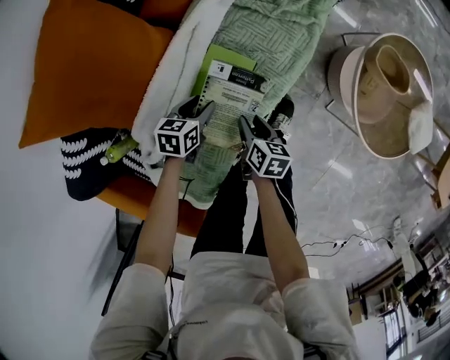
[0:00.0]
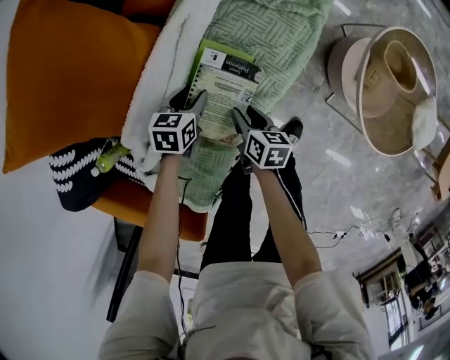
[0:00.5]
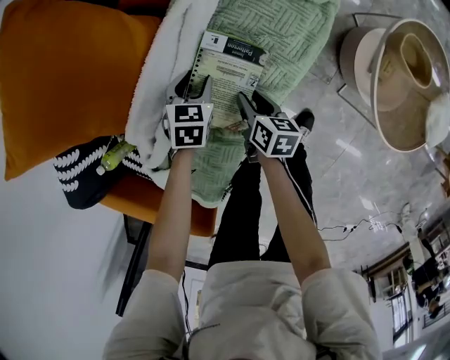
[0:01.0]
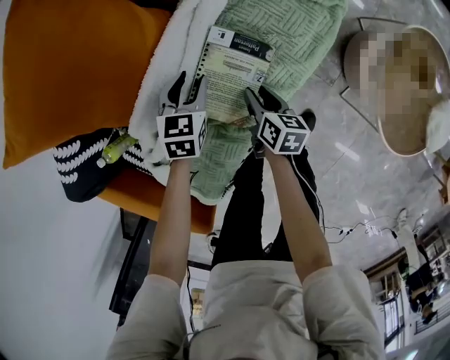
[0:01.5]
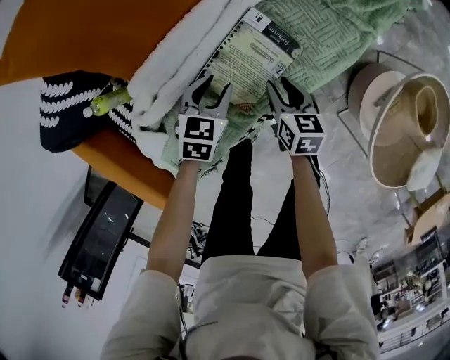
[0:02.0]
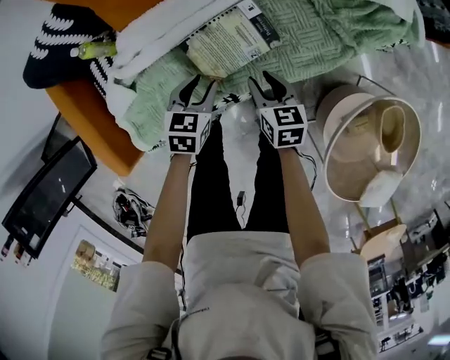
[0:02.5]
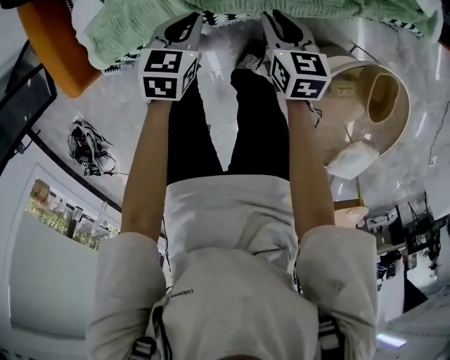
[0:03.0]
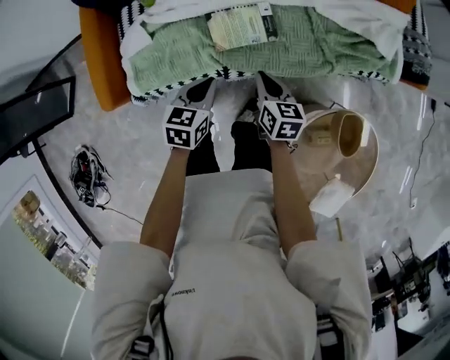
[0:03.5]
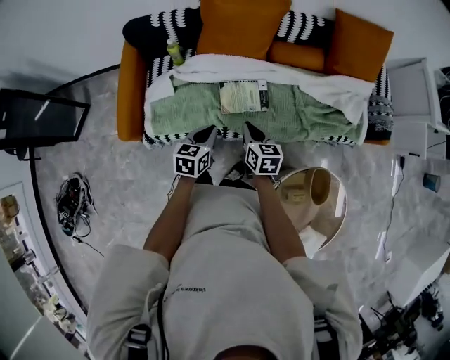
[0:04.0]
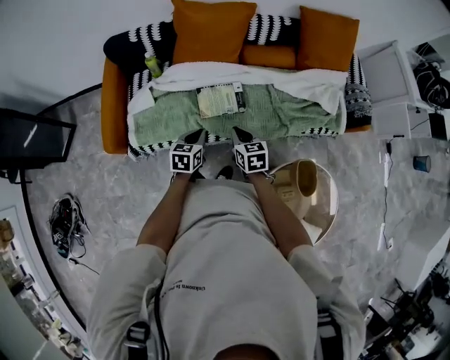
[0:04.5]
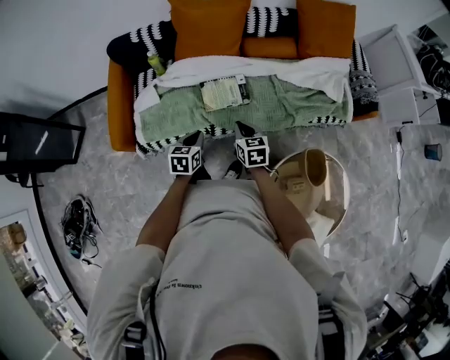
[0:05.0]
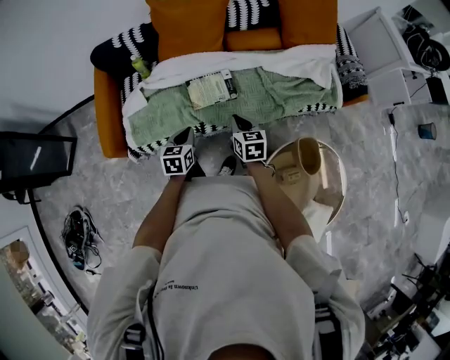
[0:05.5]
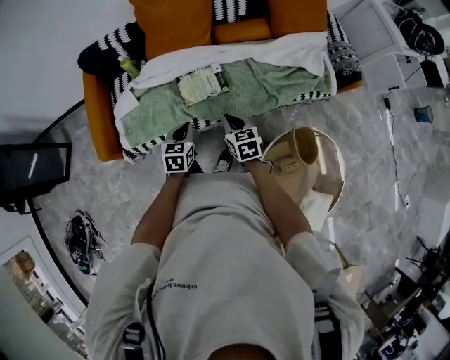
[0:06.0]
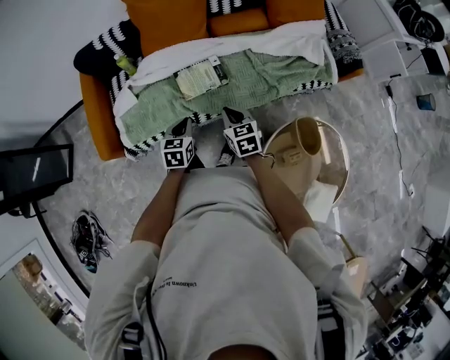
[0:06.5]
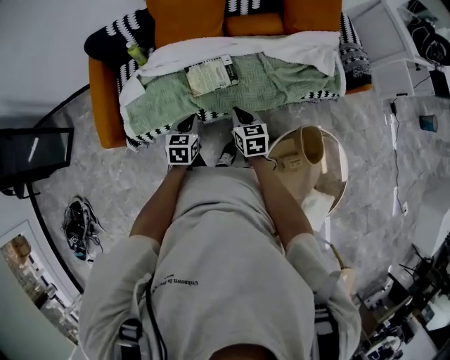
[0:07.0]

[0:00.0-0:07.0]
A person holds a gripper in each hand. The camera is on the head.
0:00.0 to 0:02.0: The left gripper changes its angle by about 20 degrees; the right gripper travels forward by approximately 5 cm, and changes its angle by about 40 degrees.
0:02.0 to 0:03.5: The grippers both shift upward by roughly 20 cm. The left gripper rotates roughly 40 degrees, and closes its fingers, while the right gripper rotates roughly 30 degrees, and closes its fingers.
0:03.5 to 0:05.0: The right gripper travels upward and backward by about 15 cm; the left gripper travels backward and upward by some 10 cm.
0:05.0 to 0:07.0: The grippers move only a little.

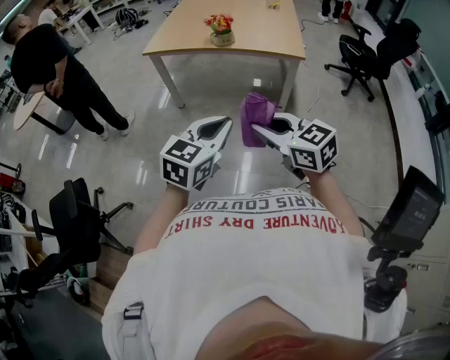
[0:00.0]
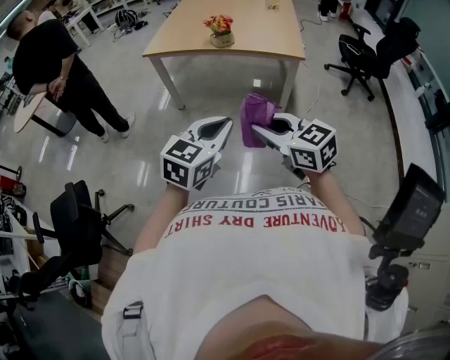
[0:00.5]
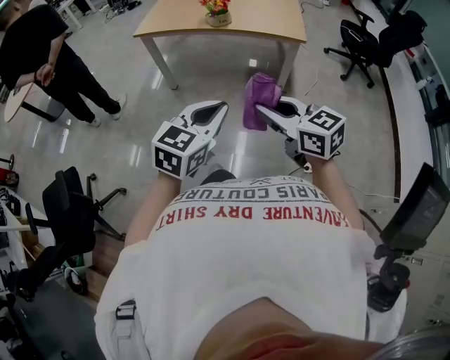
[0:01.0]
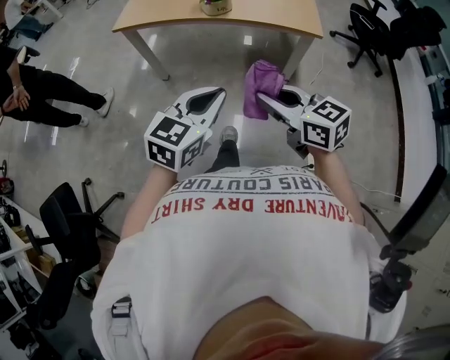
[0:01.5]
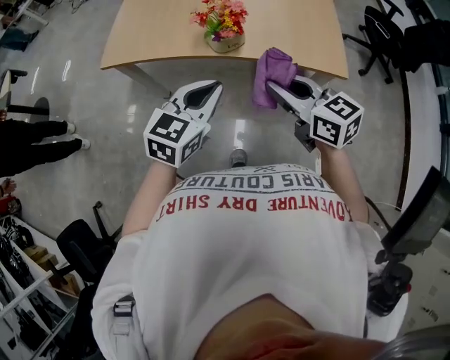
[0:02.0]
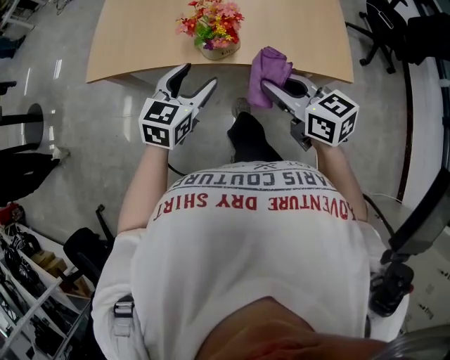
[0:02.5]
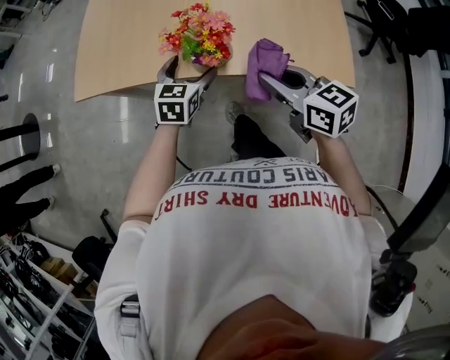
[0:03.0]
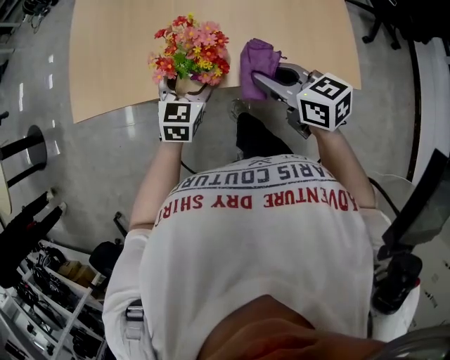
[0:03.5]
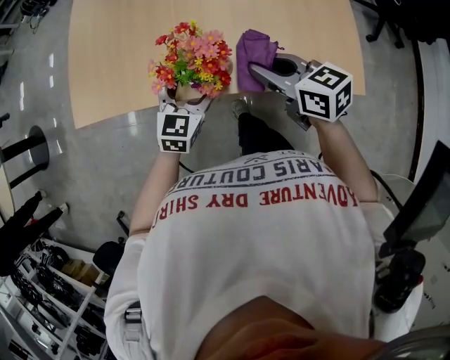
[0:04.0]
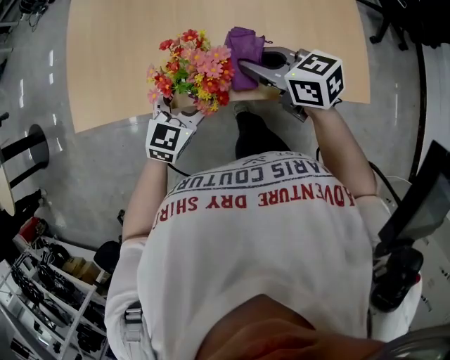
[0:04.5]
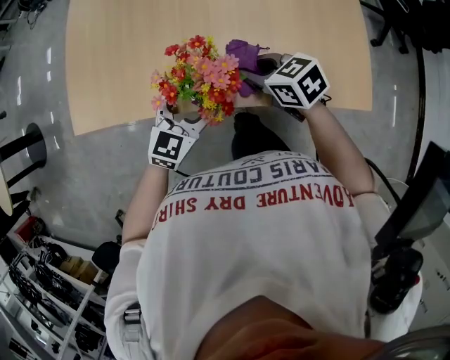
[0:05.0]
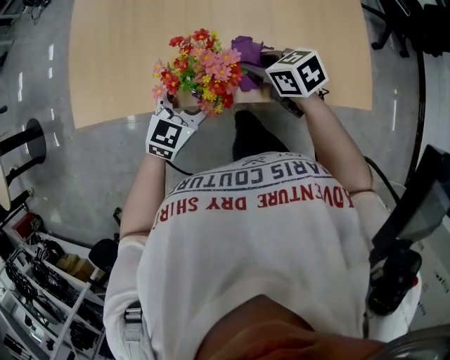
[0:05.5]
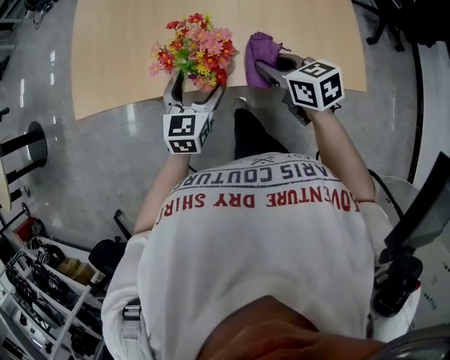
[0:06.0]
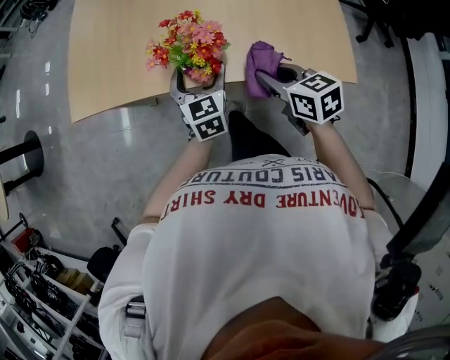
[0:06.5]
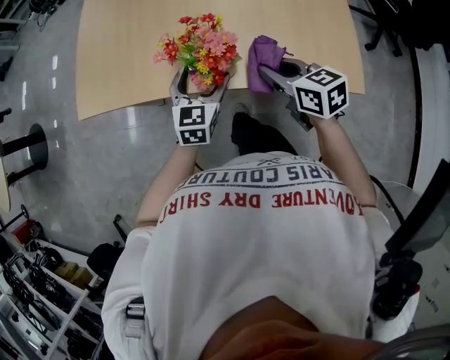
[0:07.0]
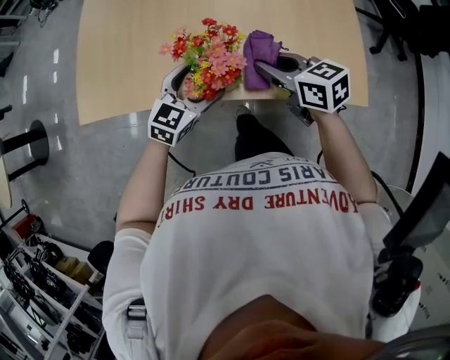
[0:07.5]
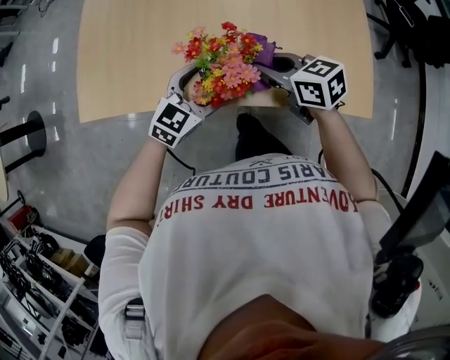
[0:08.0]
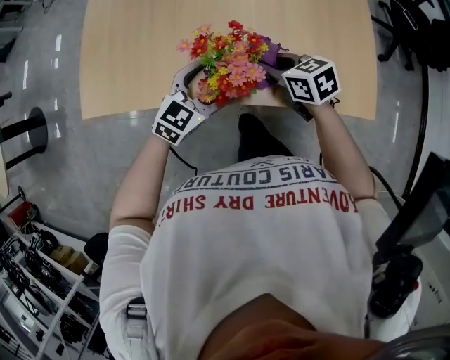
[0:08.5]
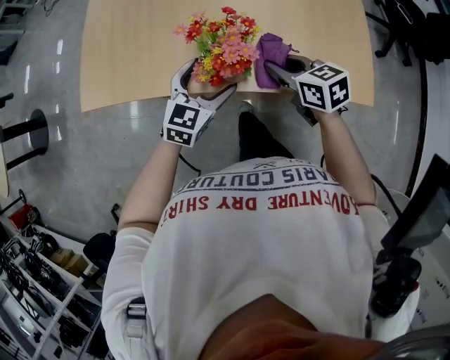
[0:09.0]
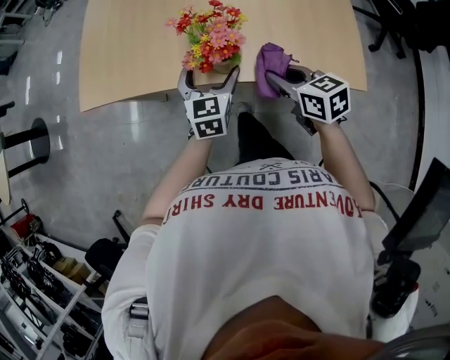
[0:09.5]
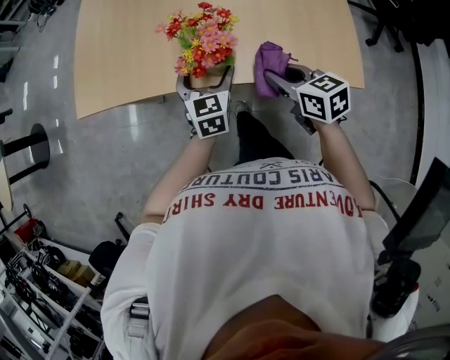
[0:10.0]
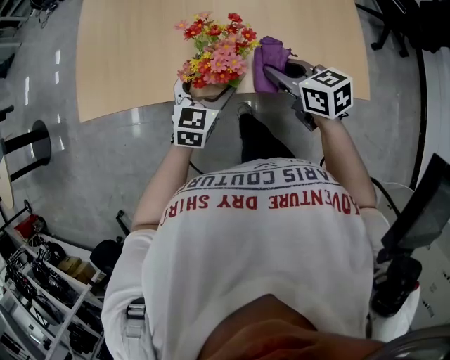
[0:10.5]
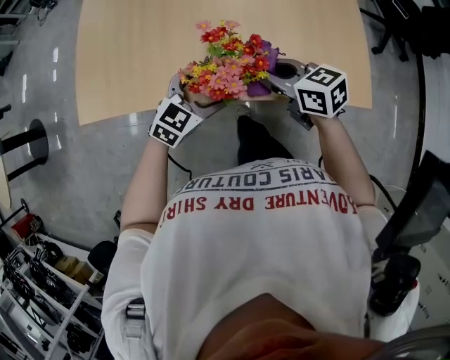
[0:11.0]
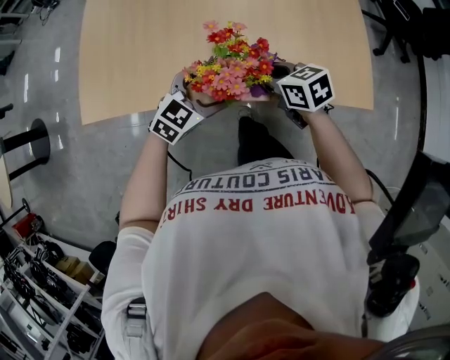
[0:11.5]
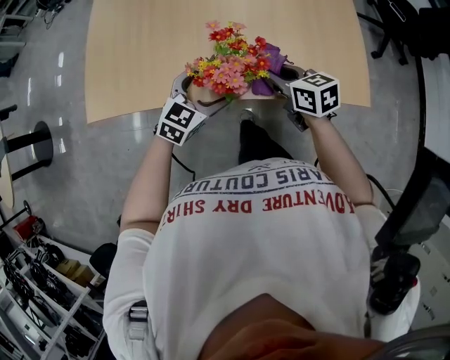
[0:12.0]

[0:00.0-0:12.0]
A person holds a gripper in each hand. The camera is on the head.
0:00.0 to 0:02.0: Both grippers travel together forward, about 30 cm.
0:02.0 to 0:04.0: The grippers both shift forward and downward by roughly 30 cm. The left gripper opens its fingers.
0:04.0 to 0:06.0: The right gripper shifts about 5 cm downward.
0:06.0 to 0:08.0: The left gripper changes place by about 5 cm, and turns by some 30 degrees. Meanwhile the right gripper moves forward, about 5 cm.
0:08.0 to 0:10.0: The left gripper turns by about 40 degrees. The right gripper is displaced backward by approximately 10 cm.
0:10.0 to 0:12.0: The left gripper changes its angle by roughly 40 degrees, while the right gripper heads forward, covering some 5 cm.

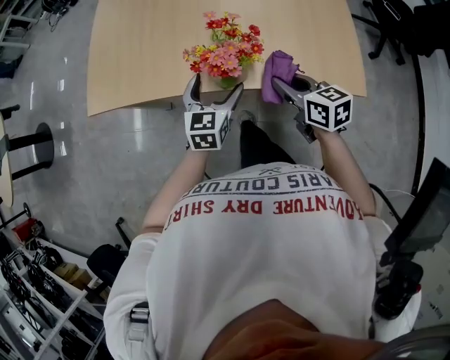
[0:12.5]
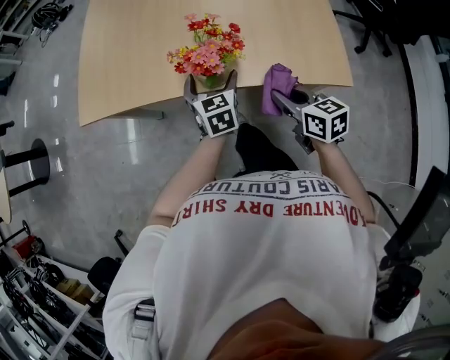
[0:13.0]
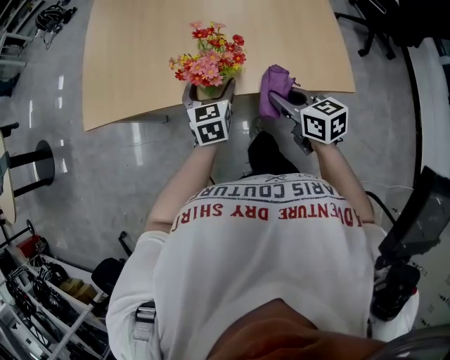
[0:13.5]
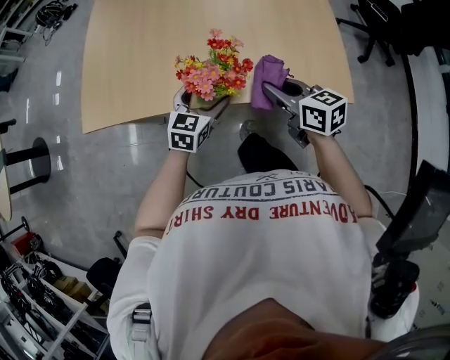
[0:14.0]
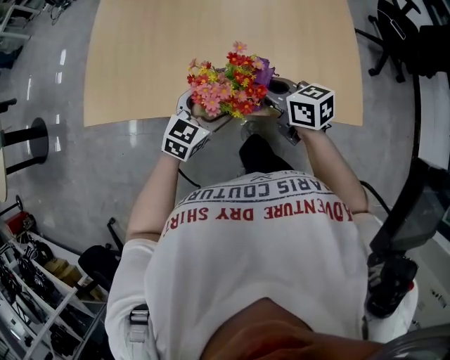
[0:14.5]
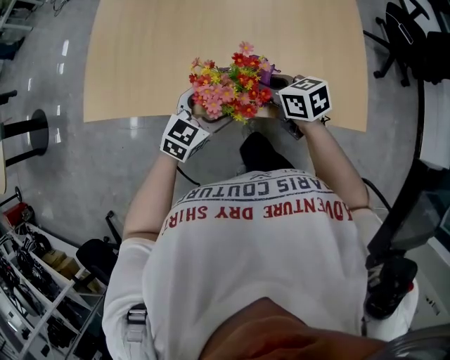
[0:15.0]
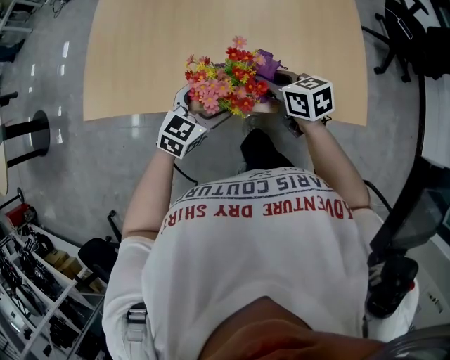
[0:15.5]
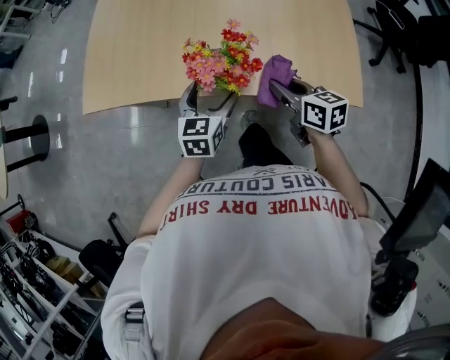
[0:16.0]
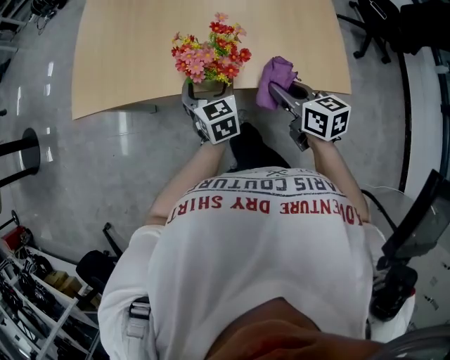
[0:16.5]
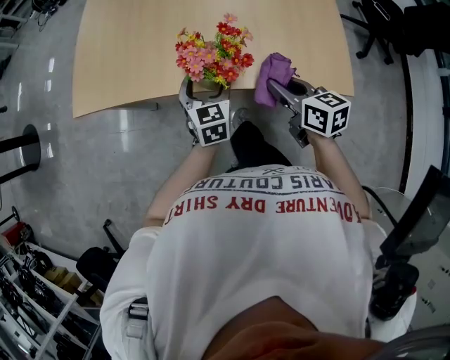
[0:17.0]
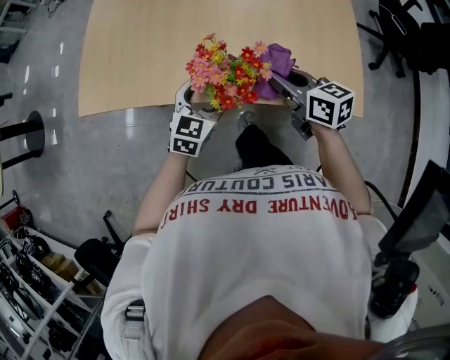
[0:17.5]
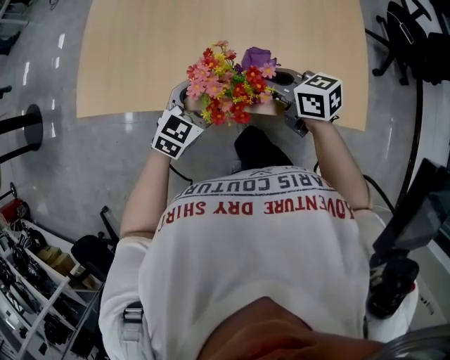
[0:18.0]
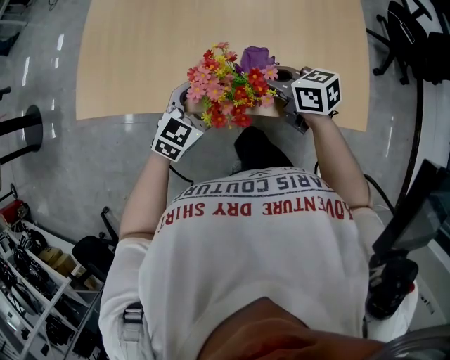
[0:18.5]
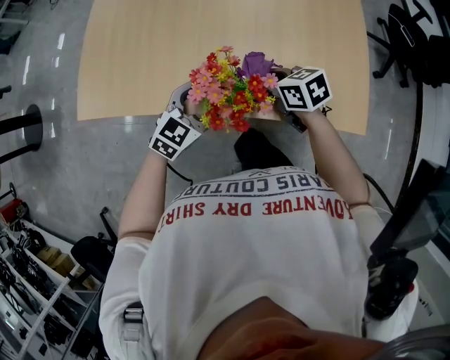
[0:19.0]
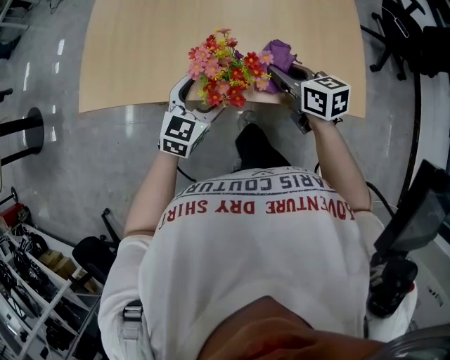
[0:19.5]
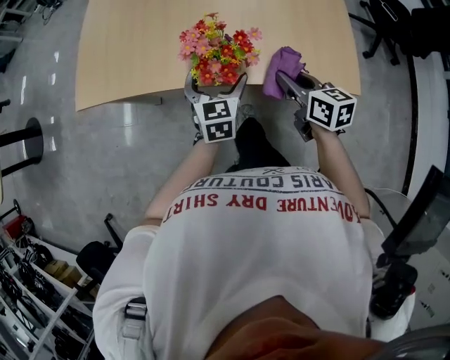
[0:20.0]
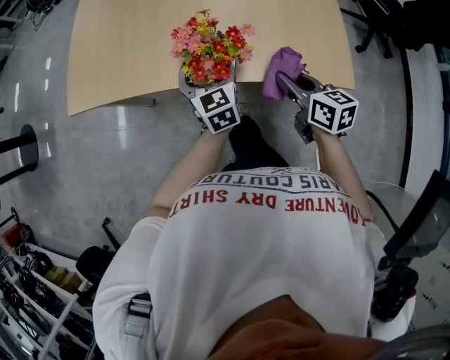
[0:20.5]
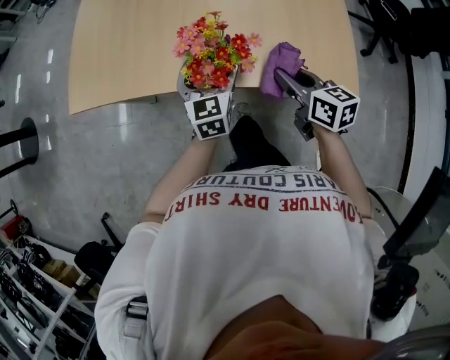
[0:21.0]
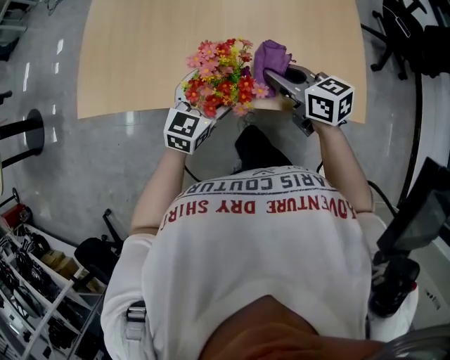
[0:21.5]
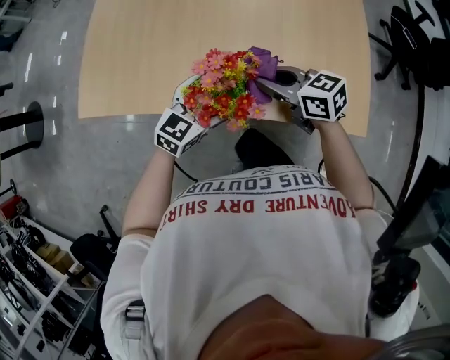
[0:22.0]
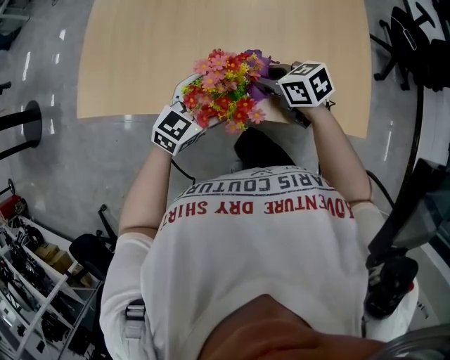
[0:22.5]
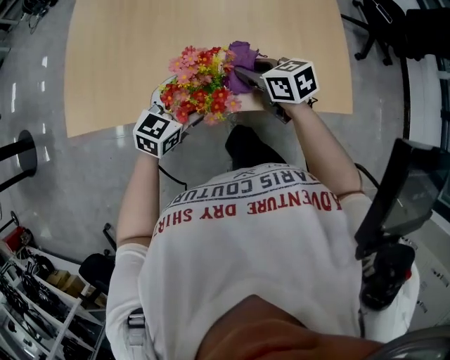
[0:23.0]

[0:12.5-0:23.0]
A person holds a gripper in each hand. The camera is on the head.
0:12.5 to 0:14.5: The right gripper travels forward by approximately 5 cm, while the left gripper changes its angle by some 30 degrees.
0:14.5 to 0:16.5: The left gripper turns by roughly 40 degrees, while the right gripper travels backward and to the right by approximately 10 cm.
0:16.5 to 0:19.0: The right gripper is displaced forward, downward and to the left by some 15 cm, and rotates roughly 30 degrees; the left gripper rotates roughly 50 degrees.
0:19.0 to 0:21.0: The left gripper swivels some 40 degrees, while the right gripper travels backward, to the right and upward by roughly 15 cm, and swivels some 30 degrees.
0:21.0 to 0:23.0: The left gripper turns by approximately 40 degrees; the right gripper heads forward, covering about 10 cm.
